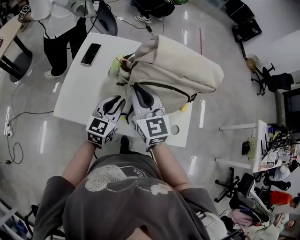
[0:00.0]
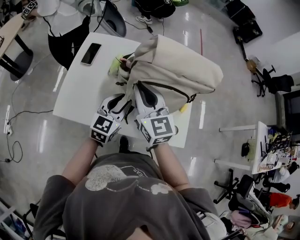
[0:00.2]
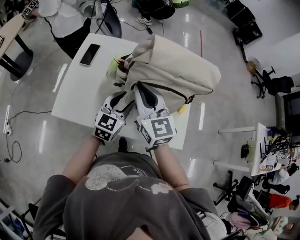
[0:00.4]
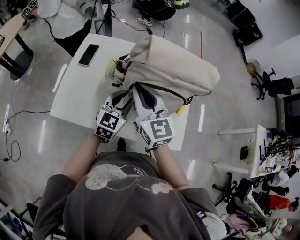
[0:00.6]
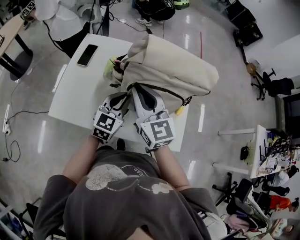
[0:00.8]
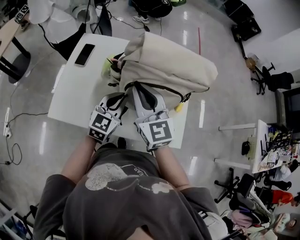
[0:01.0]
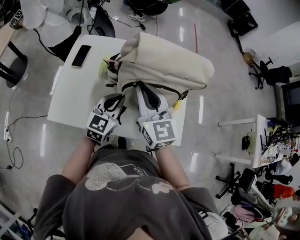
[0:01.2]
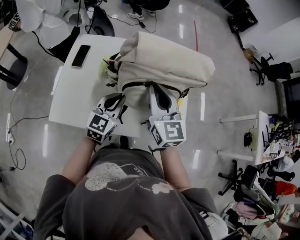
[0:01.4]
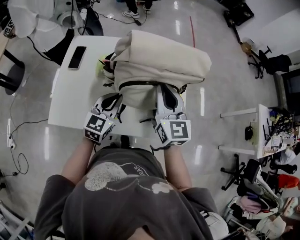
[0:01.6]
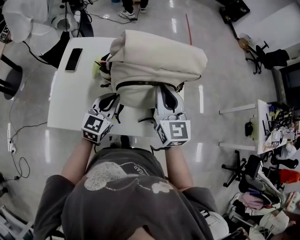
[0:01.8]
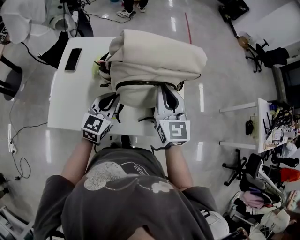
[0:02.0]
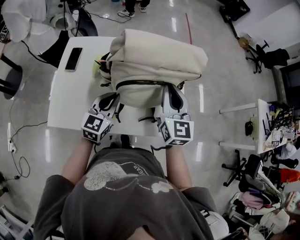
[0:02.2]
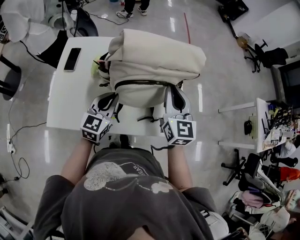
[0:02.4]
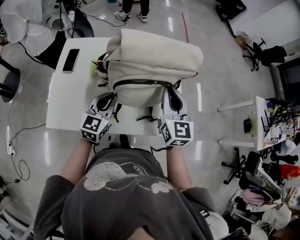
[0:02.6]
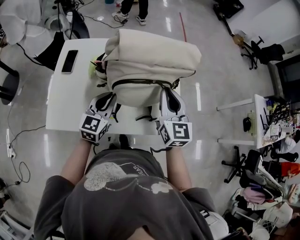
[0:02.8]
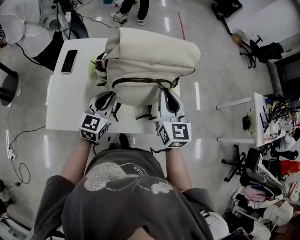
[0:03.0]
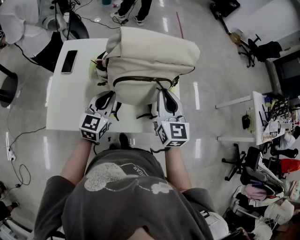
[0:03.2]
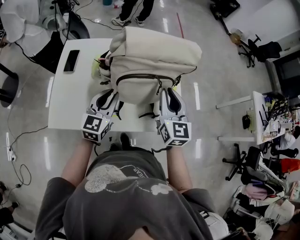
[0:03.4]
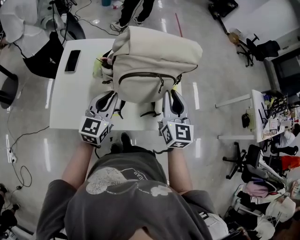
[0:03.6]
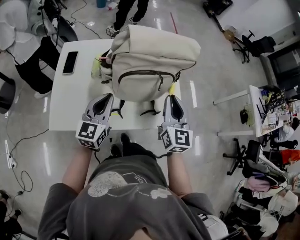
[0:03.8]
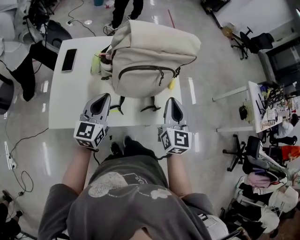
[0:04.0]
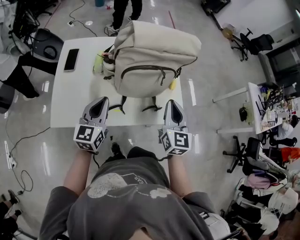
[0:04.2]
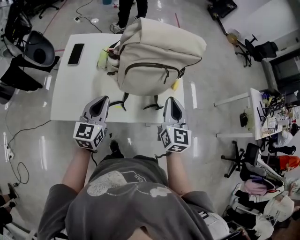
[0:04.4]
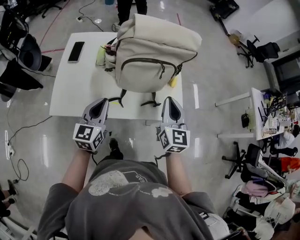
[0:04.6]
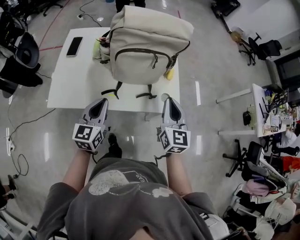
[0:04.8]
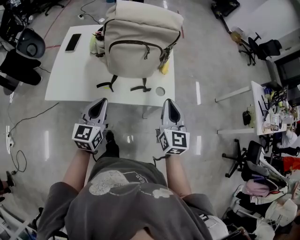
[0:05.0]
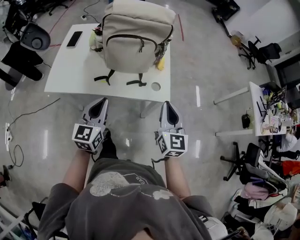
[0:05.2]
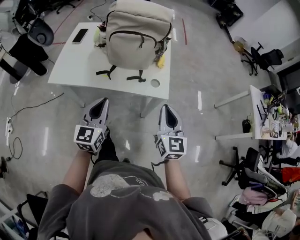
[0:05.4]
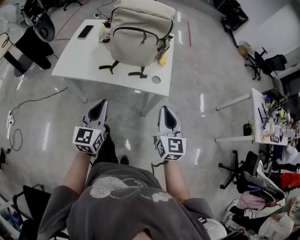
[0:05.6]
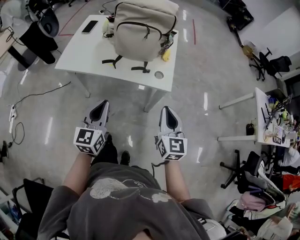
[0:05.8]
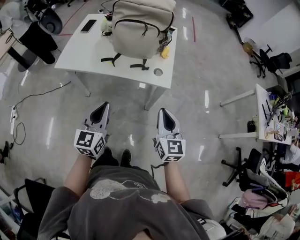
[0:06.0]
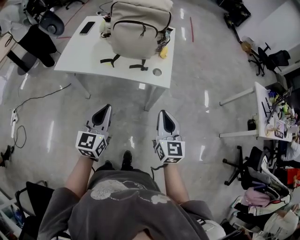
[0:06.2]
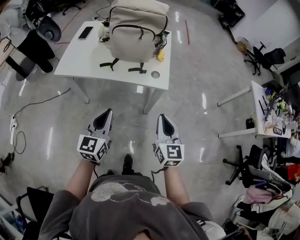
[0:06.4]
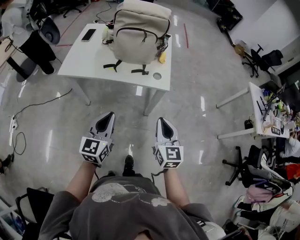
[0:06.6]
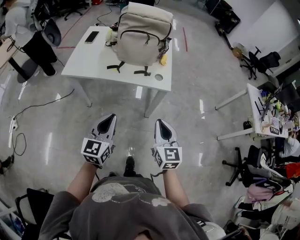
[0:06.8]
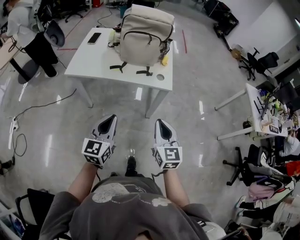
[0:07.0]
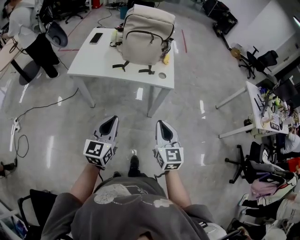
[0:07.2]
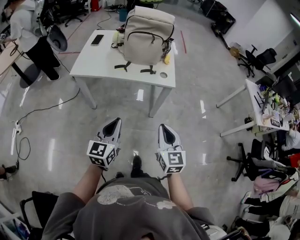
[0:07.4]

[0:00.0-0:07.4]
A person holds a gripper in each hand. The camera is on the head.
0:00.0 to 0:01.4: The right gripper heads to the right, covering about 10 cm. Meanwhile the left gripper moves about 5 cm, and opens, then closes again.
0:01.4 to 0:03.0: The right gripper heads to the right, covering approximately 10 cm.
0:03.0 to 0:04.4: The left gripper goes approximately 10 cm backward and to the left. Meanwhile the right gripper is displaced backward by approximately 10 cm.
0:04.4 to 0:06.0: The grippers both shift backward and to the right by roughly 35 cm.
0:06.0 to 0:07.4: The left gripper heads backward, covering about 15 cm. Meanwhile the right gripper goes approximately 20 cm backward and to the left.

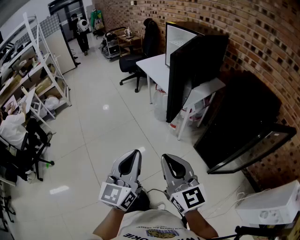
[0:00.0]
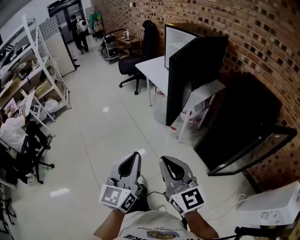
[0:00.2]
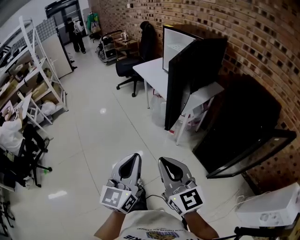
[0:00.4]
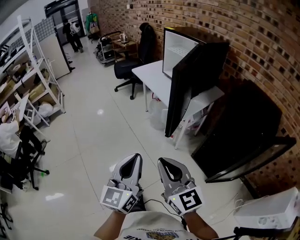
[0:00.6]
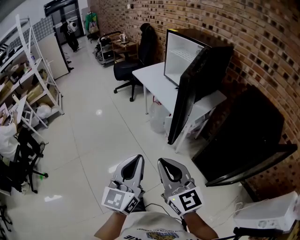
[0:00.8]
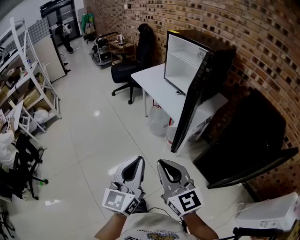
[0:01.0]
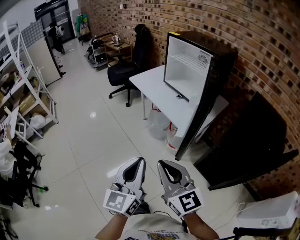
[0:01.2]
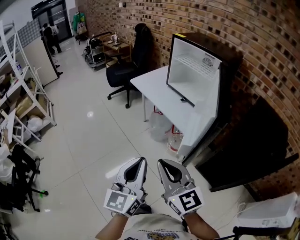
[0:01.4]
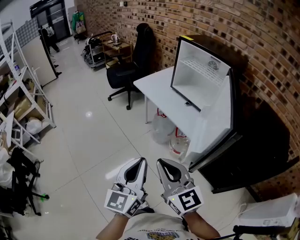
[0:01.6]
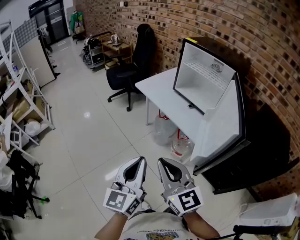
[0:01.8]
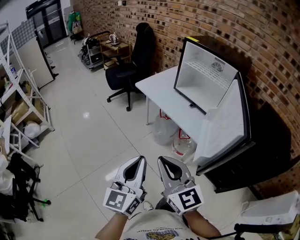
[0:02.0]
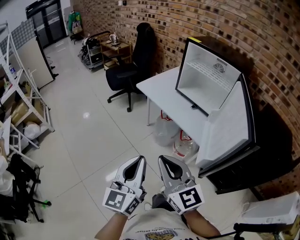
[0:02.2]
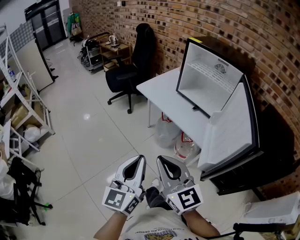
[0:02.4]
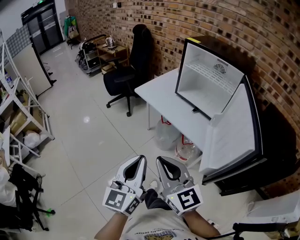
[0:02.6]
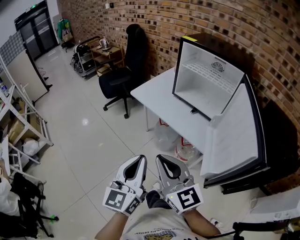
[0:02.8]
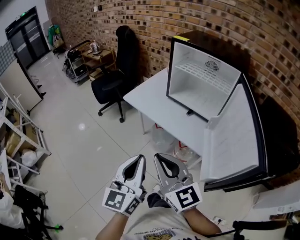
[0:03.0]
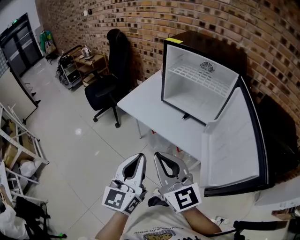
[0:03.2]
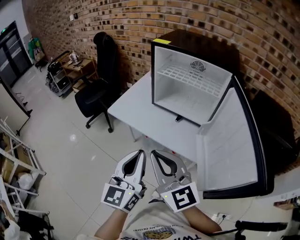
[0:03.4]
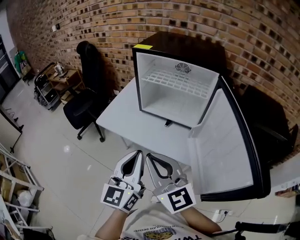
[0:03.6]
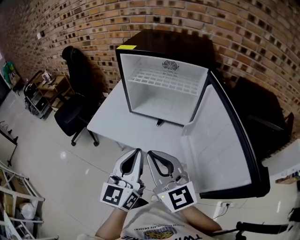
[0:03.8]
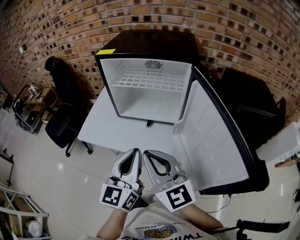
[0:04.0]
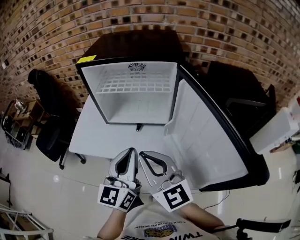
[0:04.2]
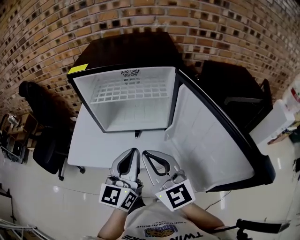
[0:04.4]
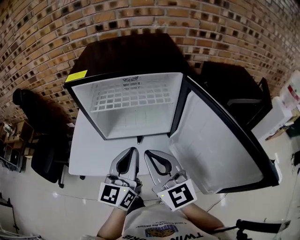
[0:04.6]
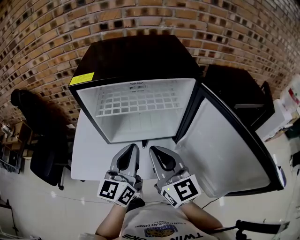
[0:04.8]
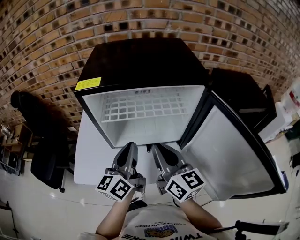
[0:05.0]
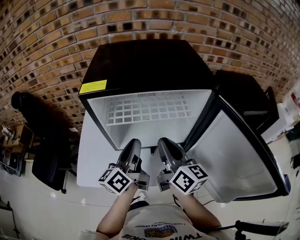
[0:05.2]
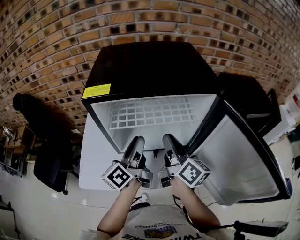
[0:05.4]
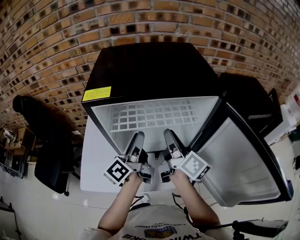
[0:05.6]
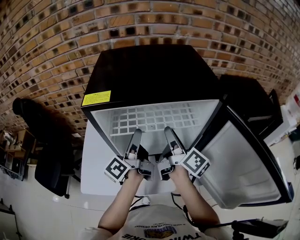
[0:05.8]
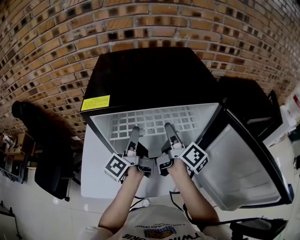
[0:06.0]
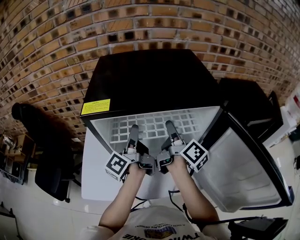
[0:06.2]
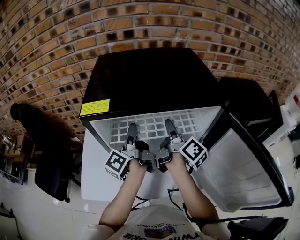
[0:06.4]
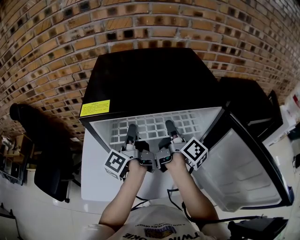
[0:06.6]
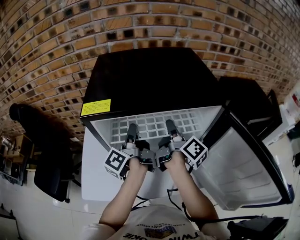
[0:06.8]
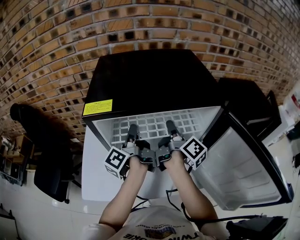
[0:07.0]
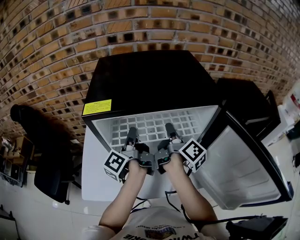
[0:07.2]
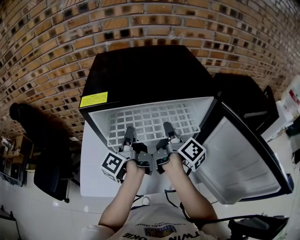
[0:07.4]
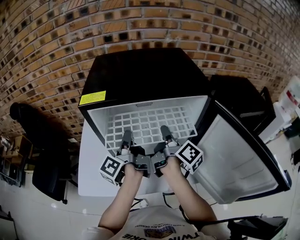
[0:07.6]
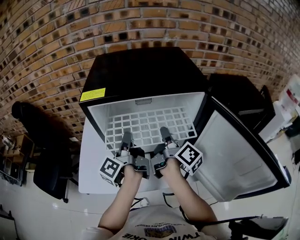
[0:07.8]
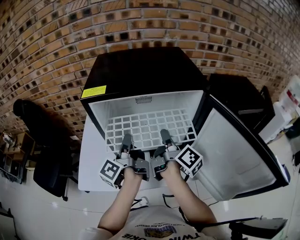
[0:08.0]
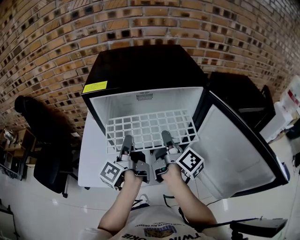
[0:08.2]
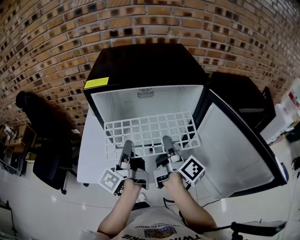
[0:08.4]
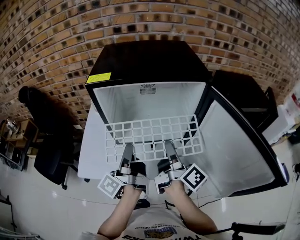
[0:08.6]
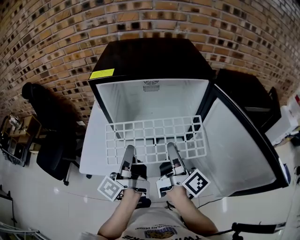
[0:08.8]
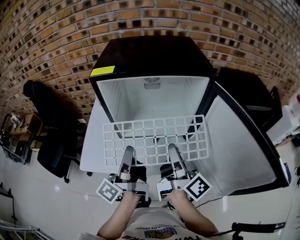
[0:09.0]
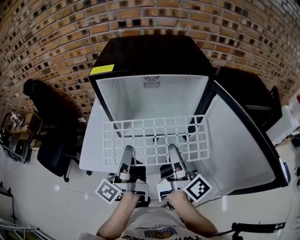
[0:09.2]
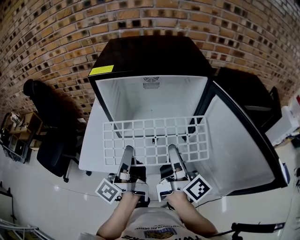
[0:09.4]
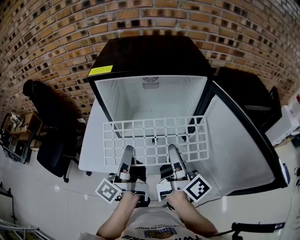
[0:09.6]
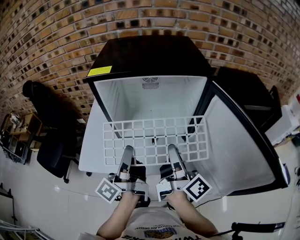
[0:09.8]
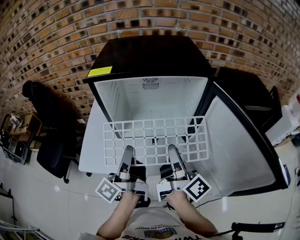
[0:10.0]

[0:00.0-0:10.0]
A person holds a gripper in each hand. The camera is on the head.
0:00.0 to 0:01.4: Both grippers travel together forward, roughly 25 cm.
0:01.4 to 0:02.8: Both grippers move forward and to the left, approximately 20 cm.
0:02.8 to 0:04.2: The right gripper ends up about 25 cm from where it was, and changes its angle by about 30 degrees. Meanwhile the left gripper moves approximately 30 cm, and rotates about 40 degrees.
0:04.2 to 0:05.8: The right gripper travels forward by some 25 cm, rolls clockwise, seen from behind, by roughly 70 degrees, and opens its fingers. Meanwhile the left gripper heads forward and to the left, covering some 30 cm, twists about 60 degrees counterclockwise, seen from behind, and opens.
0:05.8 to 0:07.2: The left gripper closes its fingers. The right gripper closes.
0:07.2 to 0:08.6: Both grippers move backward, some 15 cm.
0:08.6 to 0:10.0: There are only small adjustments of the grippers.

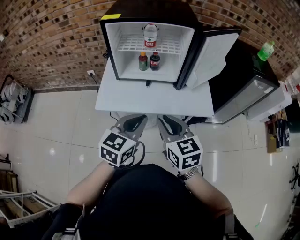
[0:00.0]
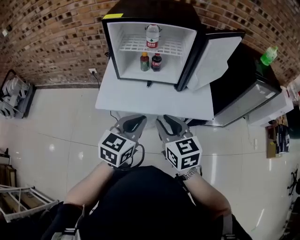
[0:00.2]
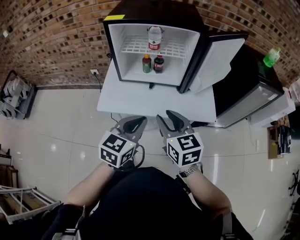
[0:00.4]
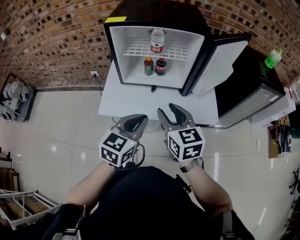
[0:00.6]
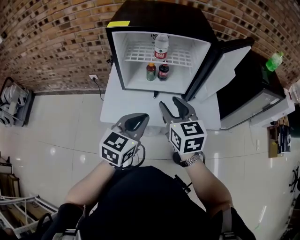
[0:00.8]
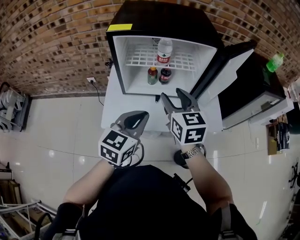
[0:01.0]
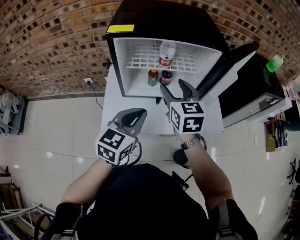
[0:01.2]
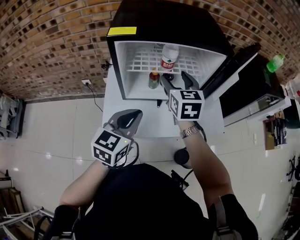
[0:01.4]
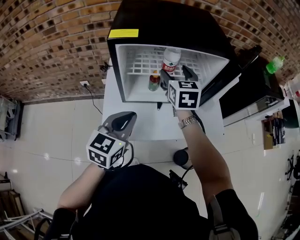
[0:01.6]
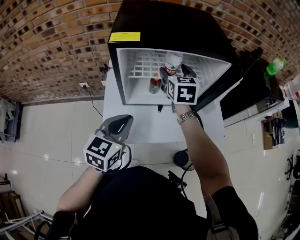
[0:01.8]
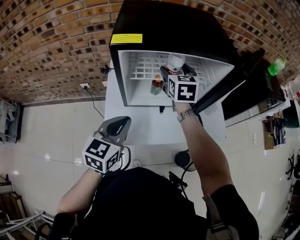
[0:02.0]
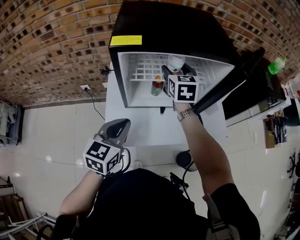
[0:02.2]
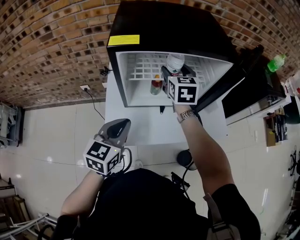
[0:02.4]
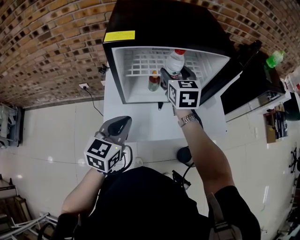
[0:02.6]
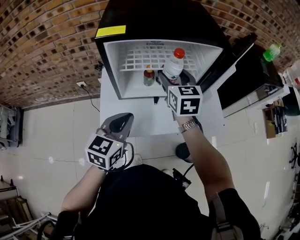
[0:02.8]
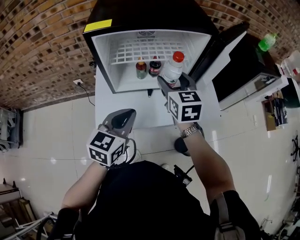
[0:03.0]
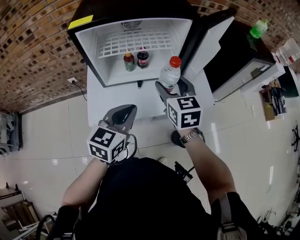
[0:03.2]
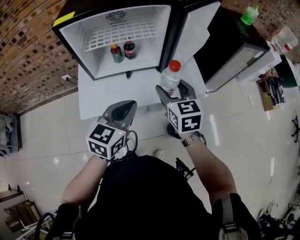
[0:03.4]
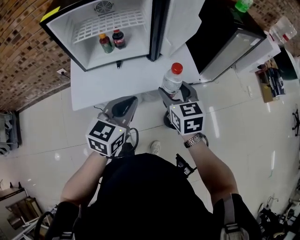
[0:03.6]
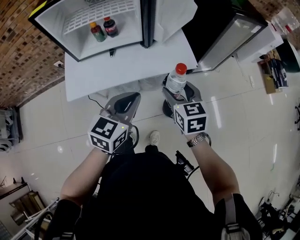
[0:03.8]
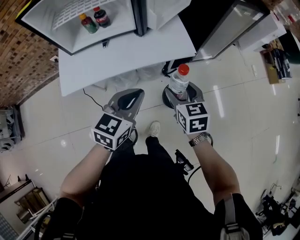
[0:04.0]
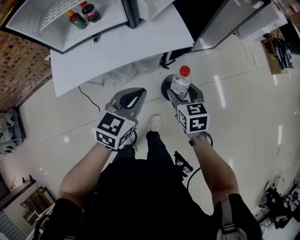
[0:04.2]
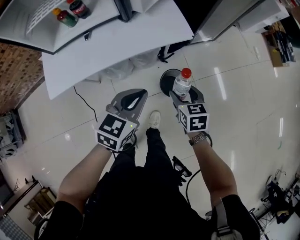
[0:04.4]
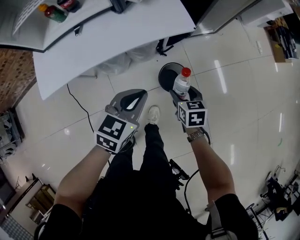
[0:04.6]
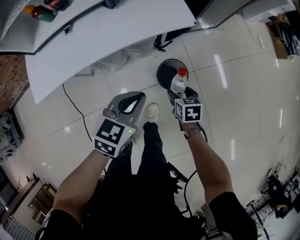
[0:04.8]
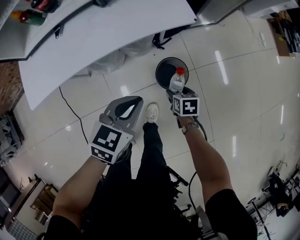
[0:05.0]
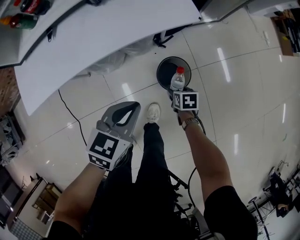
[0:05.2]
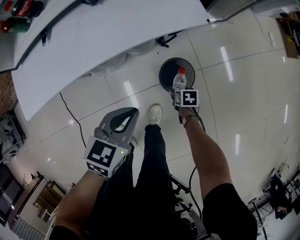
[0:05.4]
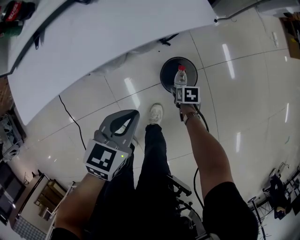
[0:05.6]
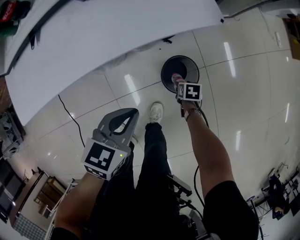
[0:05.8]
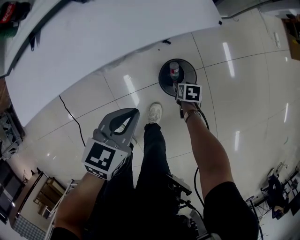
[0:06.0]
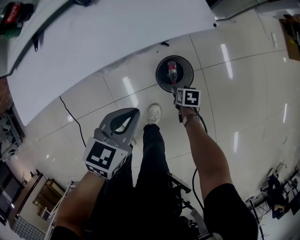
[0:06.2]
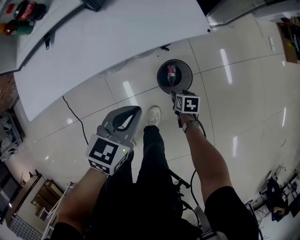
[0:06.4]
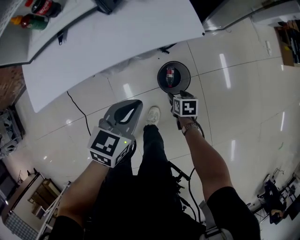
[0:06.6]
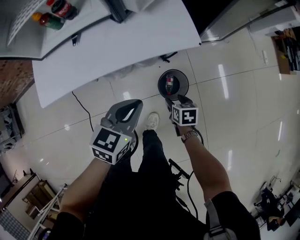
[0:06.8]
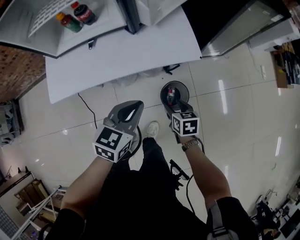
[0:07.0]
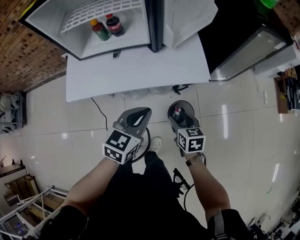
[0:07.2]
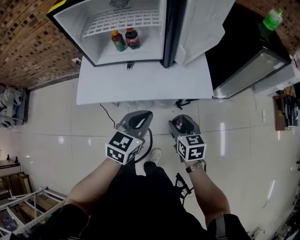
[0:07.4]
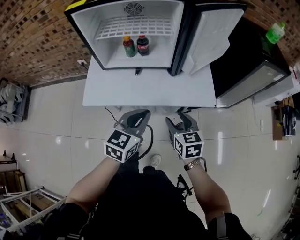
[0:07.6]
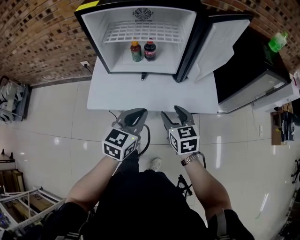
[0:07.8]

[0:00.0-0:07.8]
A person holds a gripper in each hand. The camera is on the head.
0:00.0 to 0:01.6: The right gripper shifts some 35 cm forward, changes its angle by some 20 degrees, and opens its fingers; the left gripper shifts some 25 cm forward and to the left.
0:01.6 to 0:03.2: The right gripper travels backward and to the right by about 20 cm, while the left gripper is displaced to the right by roughly 10 cm.
0:03.2 to 0:04.6: The left gripper travels to the right and downward by some 35 cm, and turns by approximately 20 degrees. The right gripper is displaced downward, to the right and backward by some 50 cm, and turns by some 40 degrees.
0:04.6 to 0:06.2: The right gripper moves downward, some 30 cm, and changes its angle by about 30 degrees. The left gripper heads downward, covering roughly 15 cm.
0:06.2 to 0:07.8: The right gripper goes roughly 60 cm upward and to the left, and tips its fingers upward by about 40 degrees. The left gripper shifts approximately 30 cm upward and to the left, and changes its angle by some 40 degrees.
